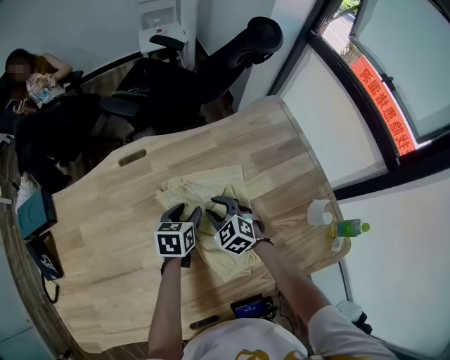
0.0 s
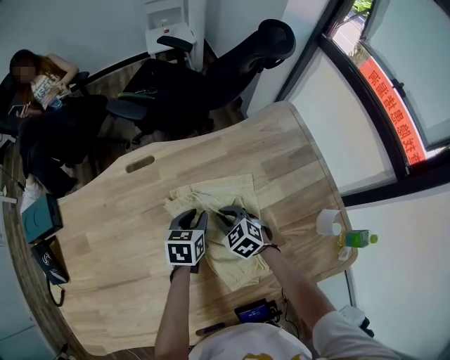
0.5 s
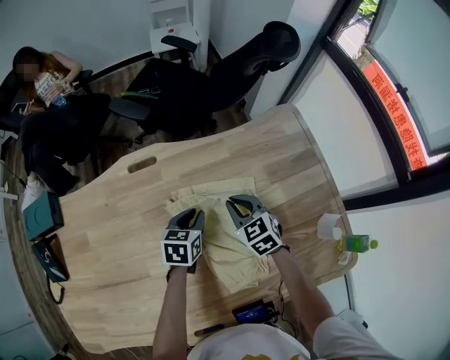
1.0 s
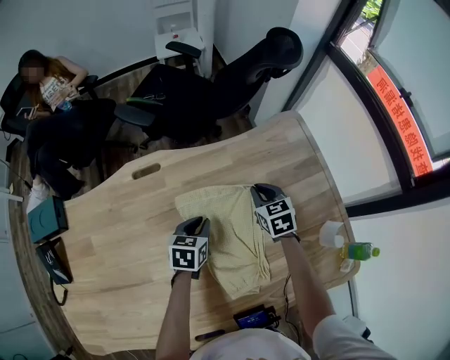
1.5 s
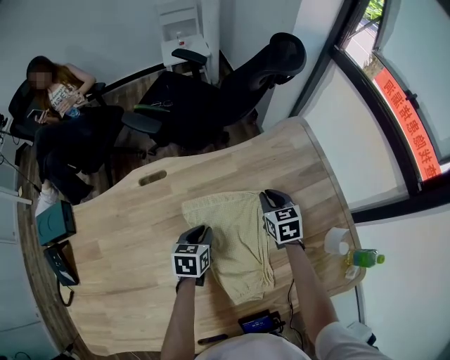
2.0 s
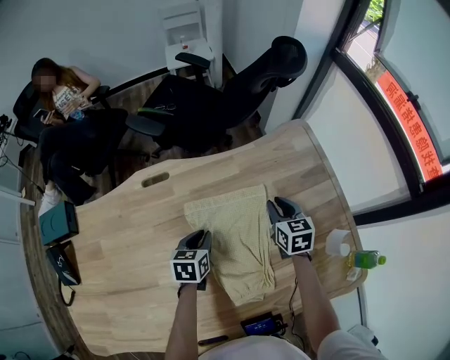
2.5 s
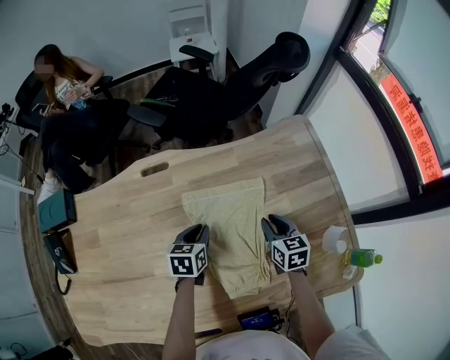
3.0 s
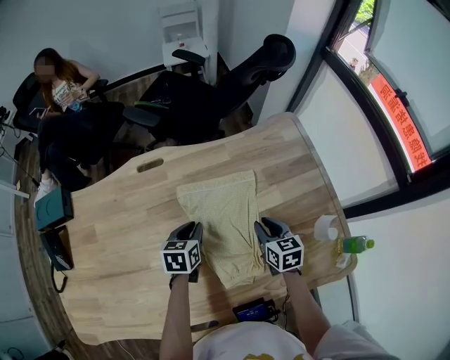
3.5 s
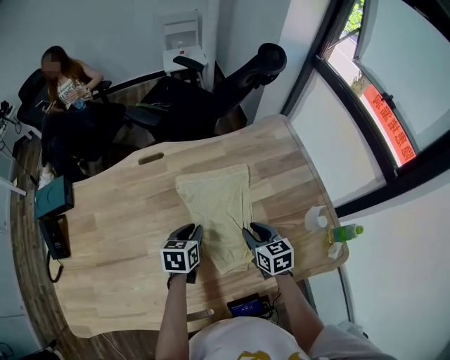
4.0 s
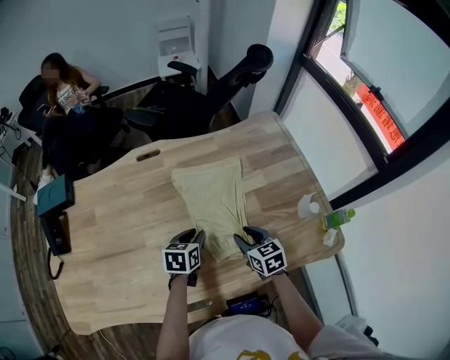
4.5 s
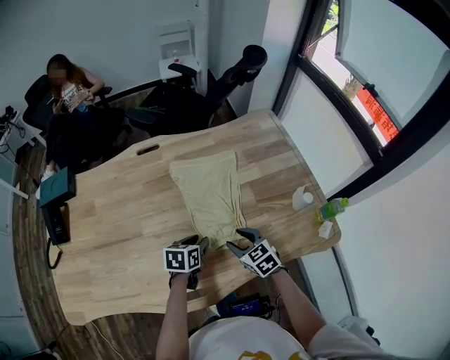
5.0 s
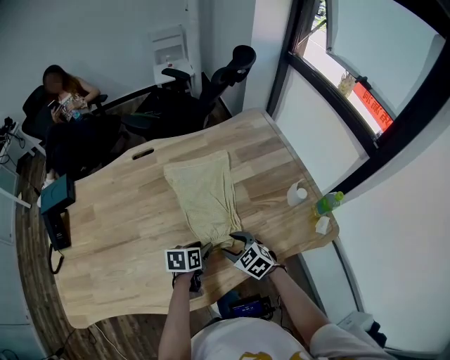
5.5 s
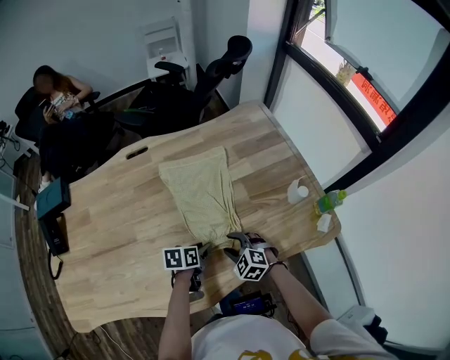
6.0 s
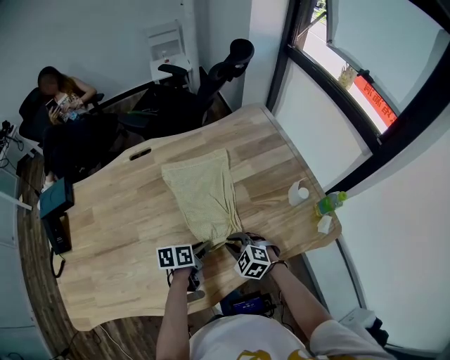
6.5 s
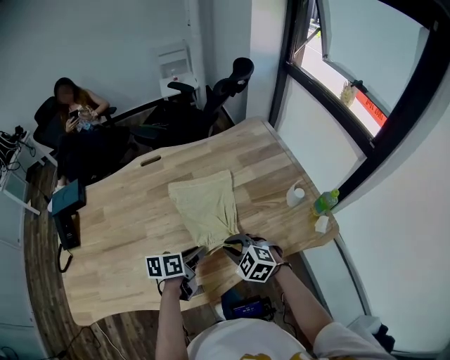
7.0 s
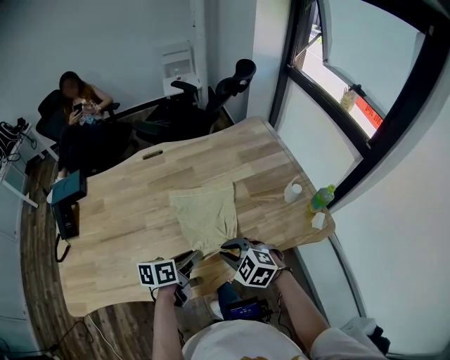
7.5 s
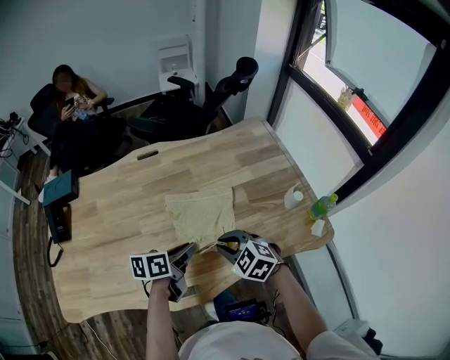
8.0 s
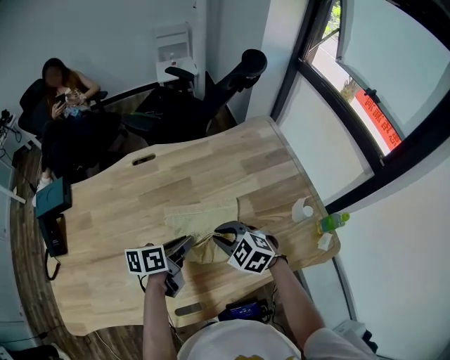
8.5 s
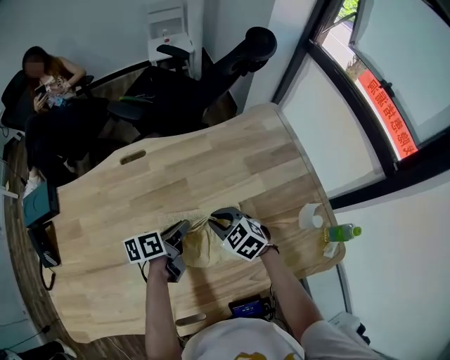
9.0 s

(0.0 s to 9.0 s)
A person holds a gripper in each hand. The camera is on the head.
0.0 s - 2.0 s: The left gripper closes its fingers. Meanwhile the right gripper heads to the right and forward, covering roughly 15 cm, and swivels roughly 40 degrees.
2.0 s - 4.5 s: The right gripper heads backward, covering approximately 25 cm, and opens, while the left gripper heads backward, covering about 15 cm.
4.5 s - 7.0 s: Both grippers travel together backward, roughly 10 cm. The right gripper travels downward and back again, roughly 5 cm each way, twists roughly 50 degrees counterclockwise, seen from behind, and closes, while the left gripper rotates some 30 degrees.
7.0 s - 9.0 s: Both grippers move forward, roughly 20 cm.

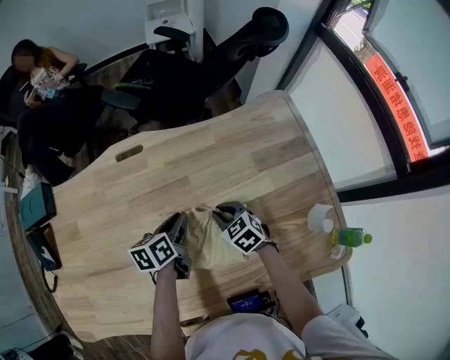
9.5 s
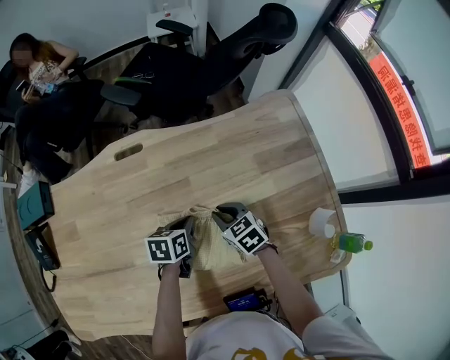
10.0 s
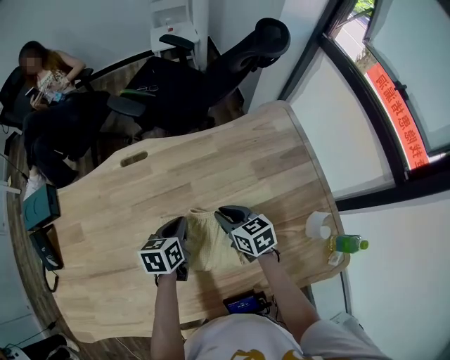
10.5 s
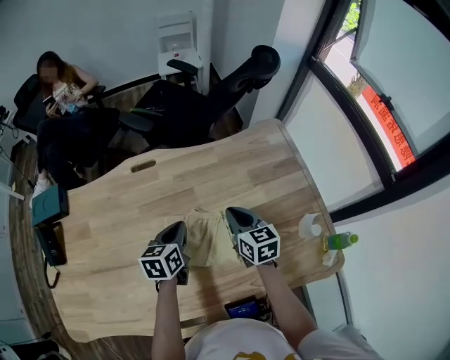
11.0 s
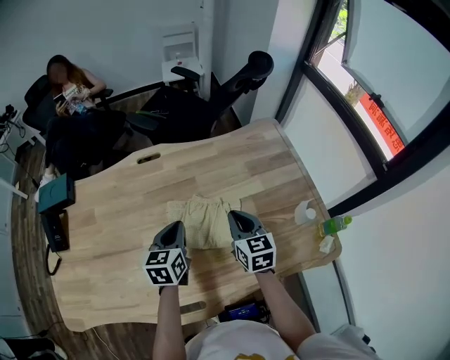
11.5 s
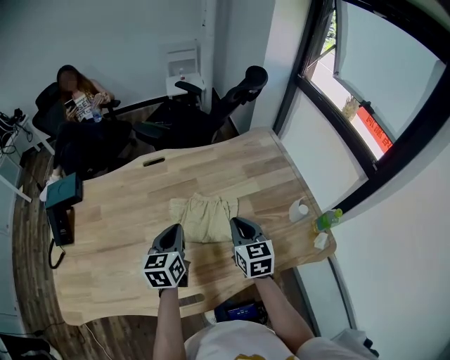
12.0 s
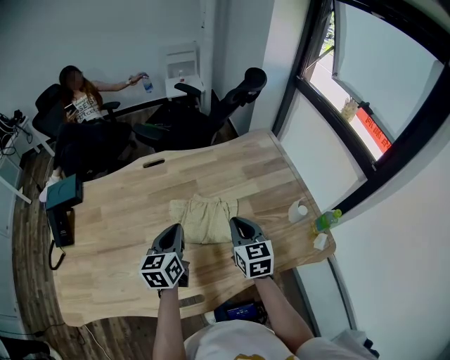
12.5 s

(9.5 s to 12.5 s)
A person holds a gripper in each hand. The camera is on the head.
9.5 s - 11.0 s: The right gripper shifts approximately 15 cm upward, and swivels roughly 30 degrees; the left gripper travels upward by roughly 5 cm, and swivels roughly 20 degrees.
11.0 s - 12.5 s: The two grippers go roughly 15 cm backward and upward.

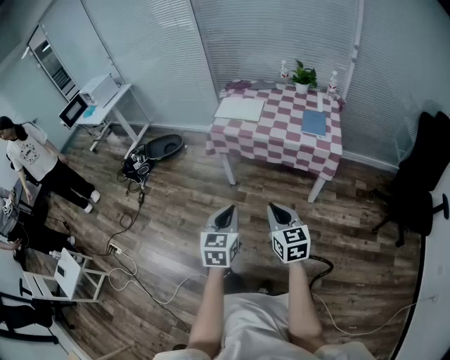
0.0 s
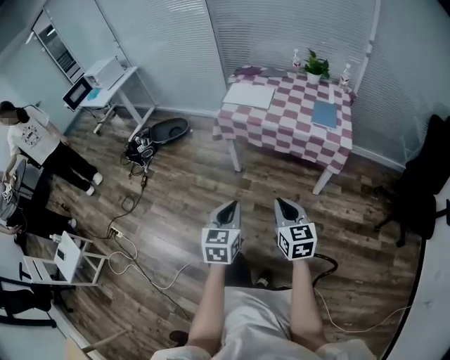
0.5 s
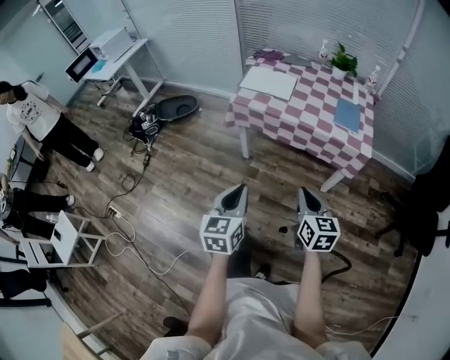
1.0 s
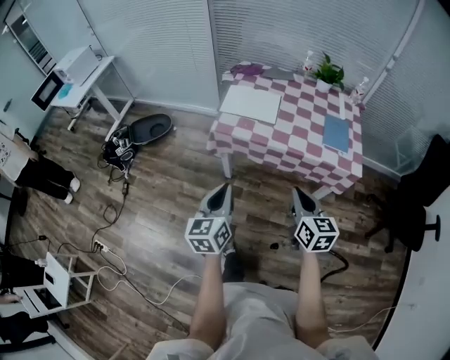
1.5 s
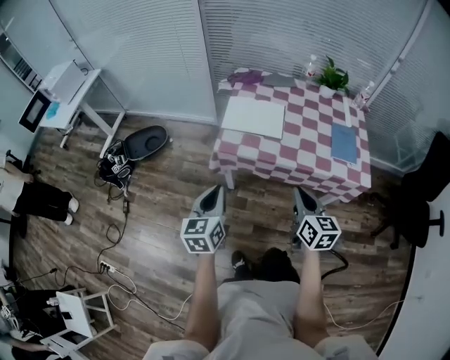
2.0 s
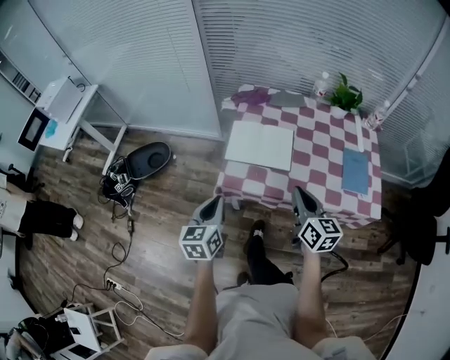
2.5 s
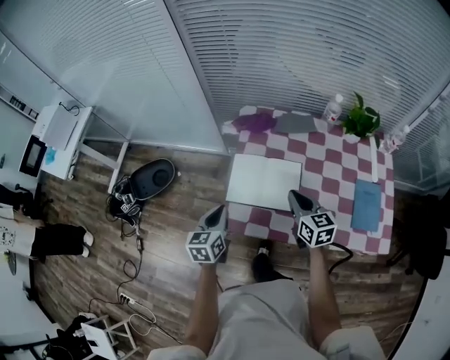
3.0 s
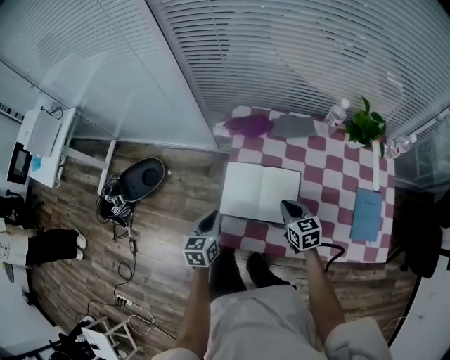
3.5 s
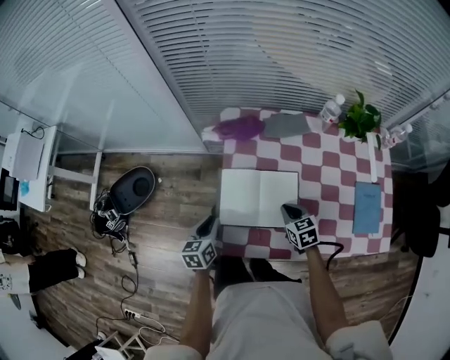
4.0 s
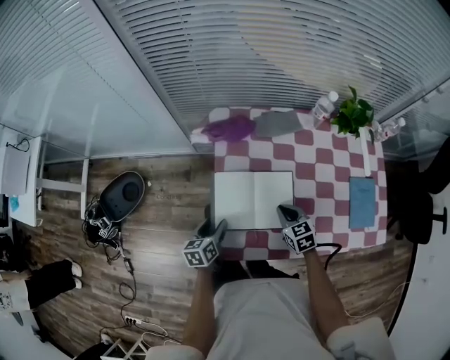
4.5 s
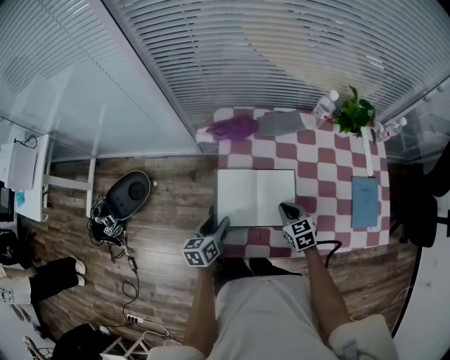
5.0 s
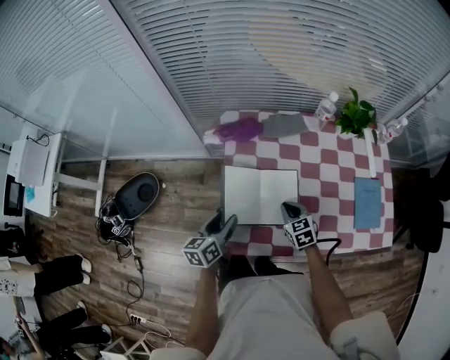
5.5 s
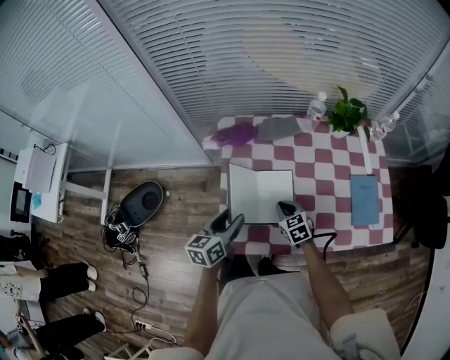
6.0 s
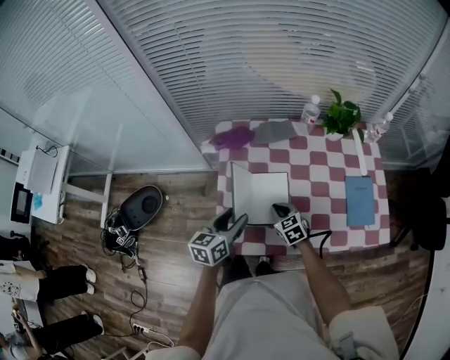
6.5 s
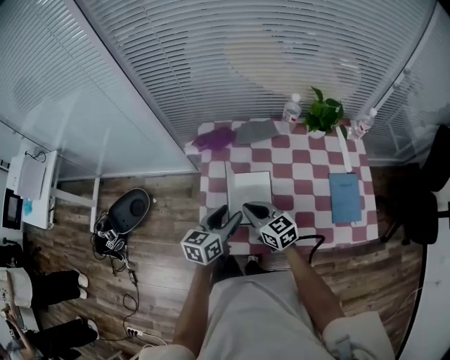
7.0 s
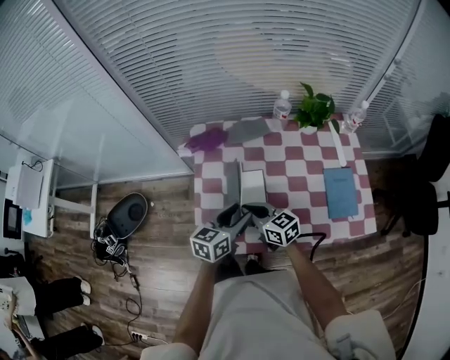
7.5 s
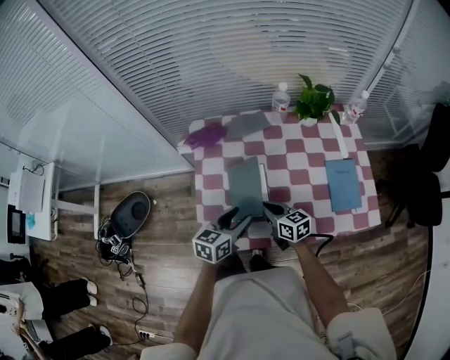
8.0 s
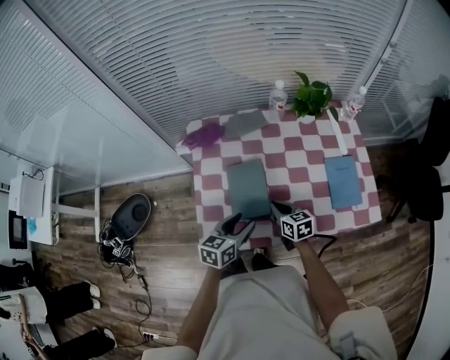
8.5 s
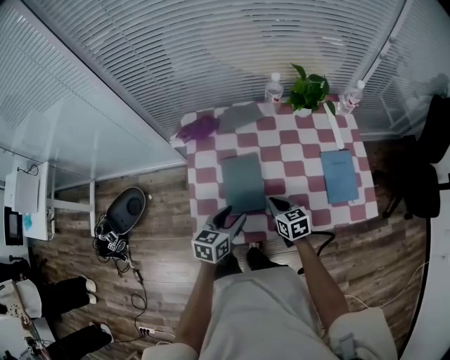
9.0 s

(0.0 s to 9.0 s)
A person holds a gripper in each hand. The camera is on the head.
0.0 s - 2.0 s: The left gripper travels forward and to the left by approximately 40 cm. The right gripper heads forward, covering approximately 35 cm.
2.0 s - 4.5 s: The two grippers travel together, forward, some 40 cm. The two grippers go approximately 25 cm downward. The left gripper swivels approximately 30 degrees, and opens its fingers, while the right gripper turns by approximately 30 degrees.
4.5 s - 7.0 s: The right gripper goes some 10 cm upward, and changes its angle by approximately 30 degrees, while the left gripper goes roughly 20 cm upward and to the right, and turns by about 20 degrees.
7.0 s - 9.0 s: The left gripper goes about 5 cm downward. Meanwhile the right gripper is displaced to the right and downward by some 15 cm, and swivels about 30 degrees.

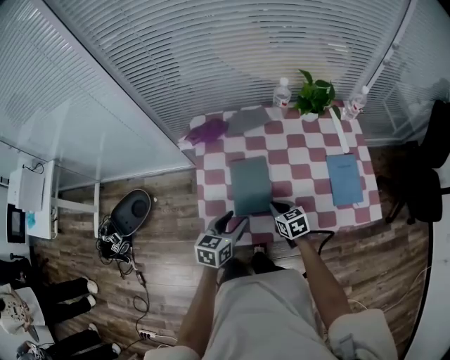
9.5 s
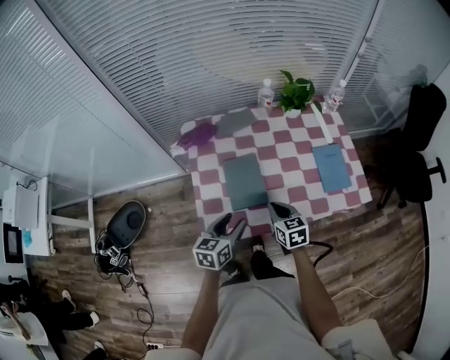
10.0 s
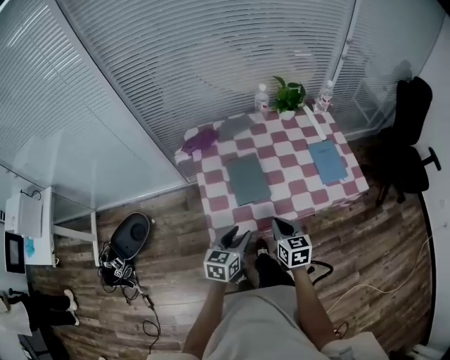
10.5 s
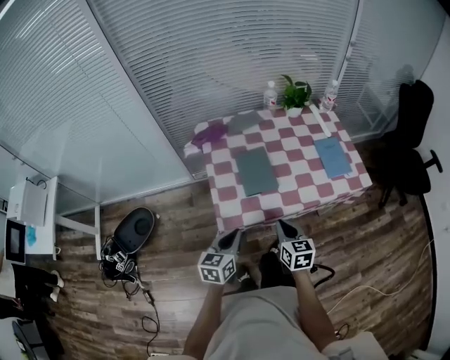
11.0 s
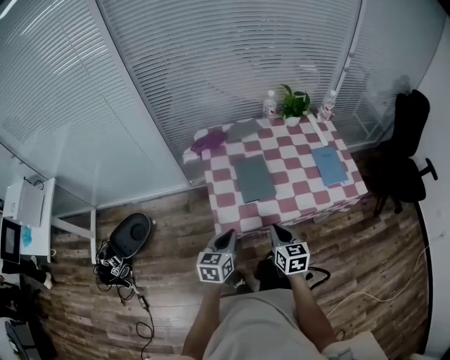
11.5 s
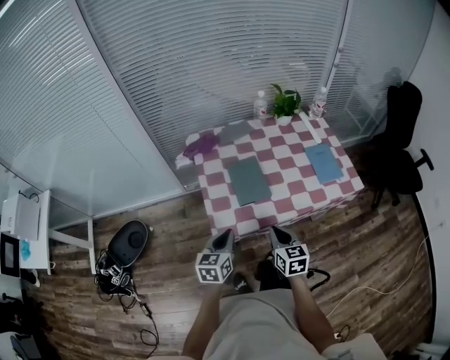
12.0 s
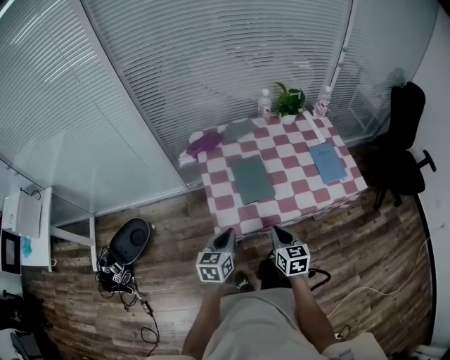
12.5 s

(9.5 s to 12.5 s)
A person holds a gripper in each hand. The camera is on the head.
9.5 s - 11.0 s: The left gripper travels backward by some 15 cm, and closes. Meanwhile the right gripper is displaced backward and upward by some 25 cm, and turns by about 30 degrees.
11.0 s - 12.5 s: The grippers make only small movements.

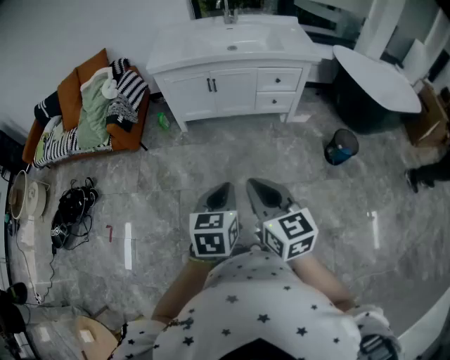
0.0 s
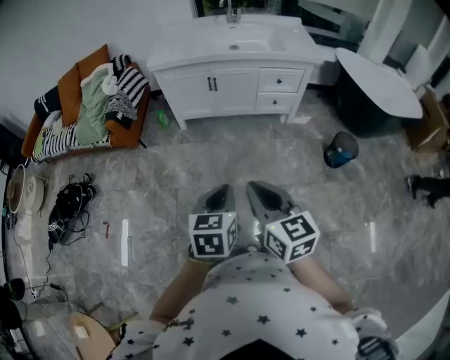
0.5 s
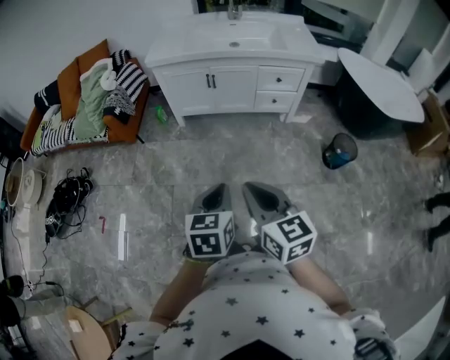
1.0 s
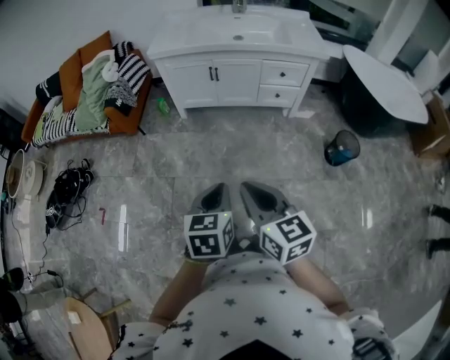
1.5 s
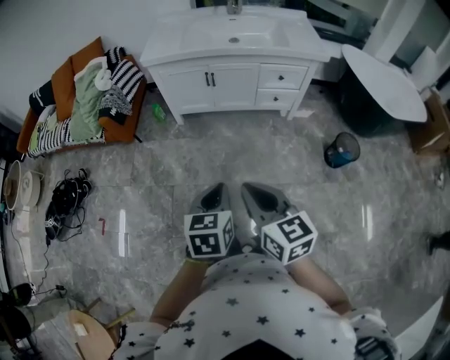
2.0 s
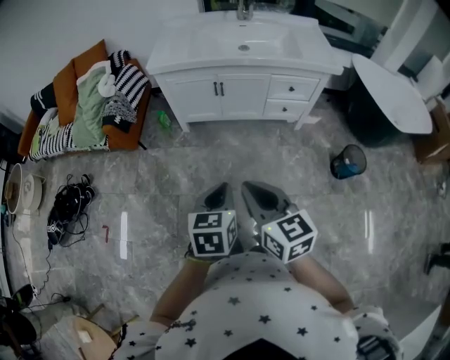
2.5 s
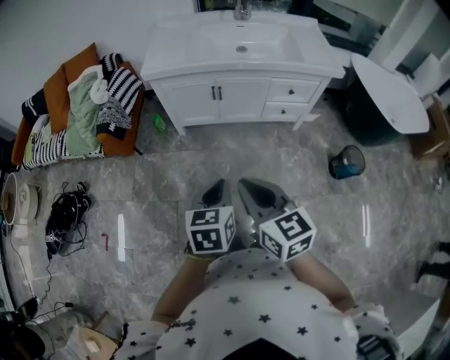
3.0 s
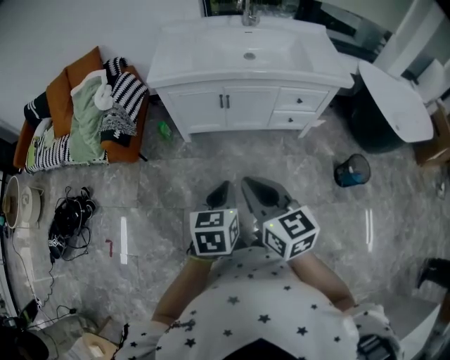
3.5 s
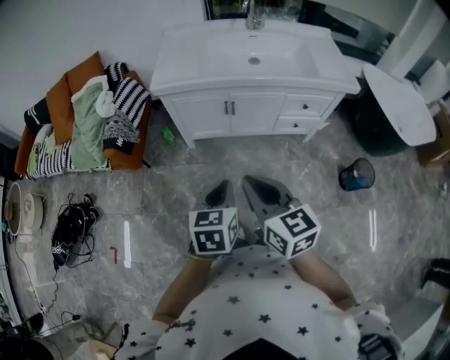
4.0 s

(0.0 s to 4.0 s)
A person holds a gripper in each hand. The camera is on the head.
0.0 s - 2.0 s: Both grippers travel together forward, about 5 cm.
2.0 s - 4.0 s: Both grippers travel together forward, some 25 cm.
